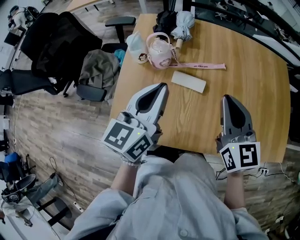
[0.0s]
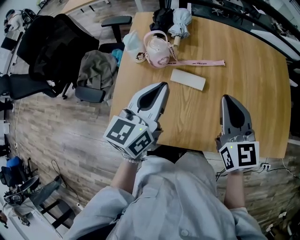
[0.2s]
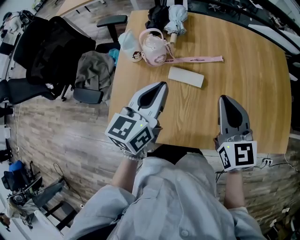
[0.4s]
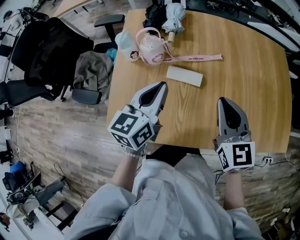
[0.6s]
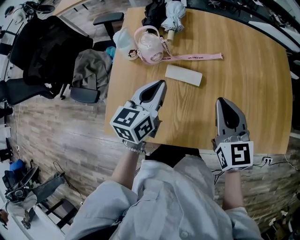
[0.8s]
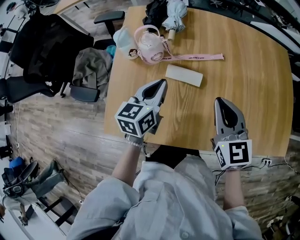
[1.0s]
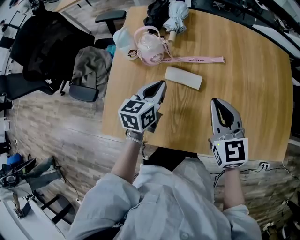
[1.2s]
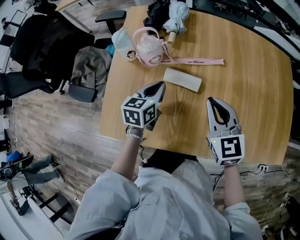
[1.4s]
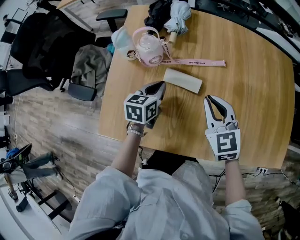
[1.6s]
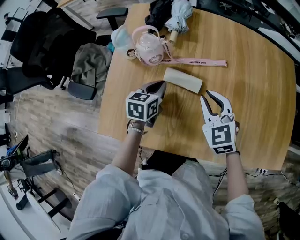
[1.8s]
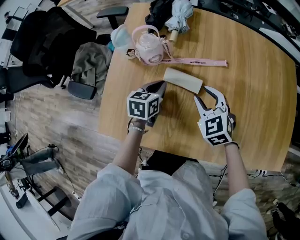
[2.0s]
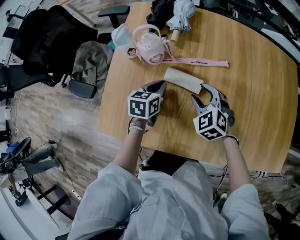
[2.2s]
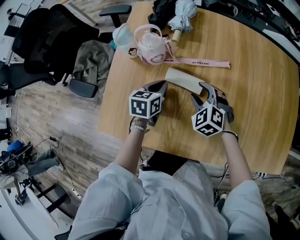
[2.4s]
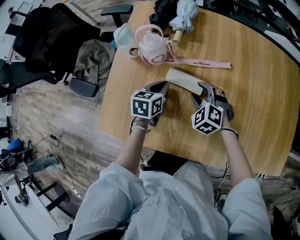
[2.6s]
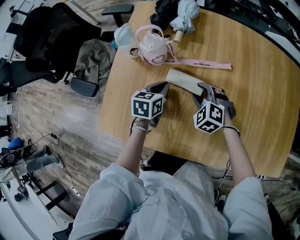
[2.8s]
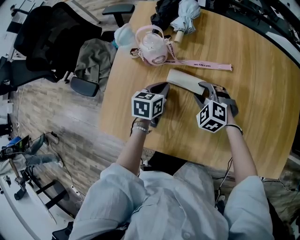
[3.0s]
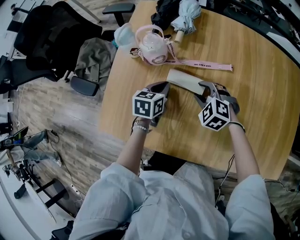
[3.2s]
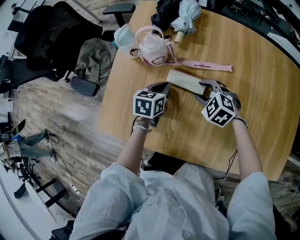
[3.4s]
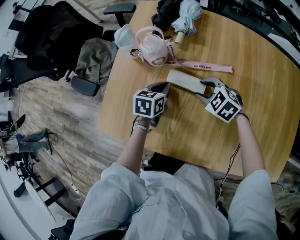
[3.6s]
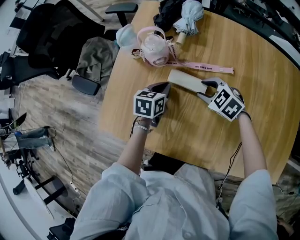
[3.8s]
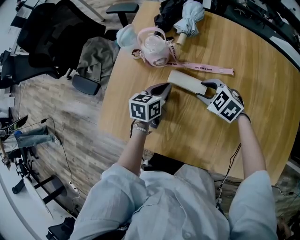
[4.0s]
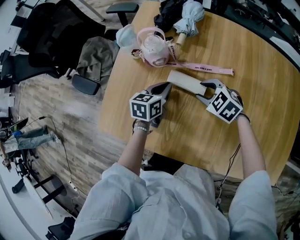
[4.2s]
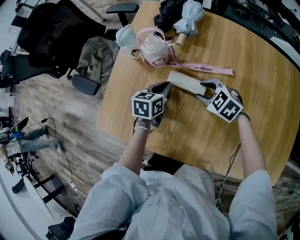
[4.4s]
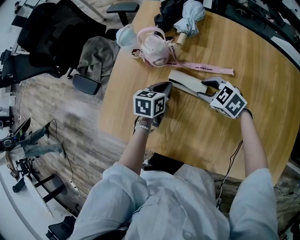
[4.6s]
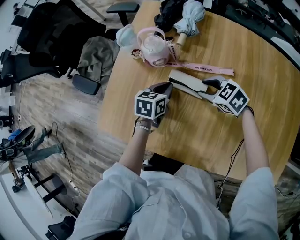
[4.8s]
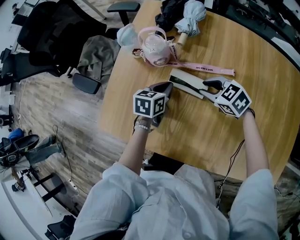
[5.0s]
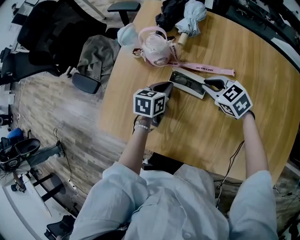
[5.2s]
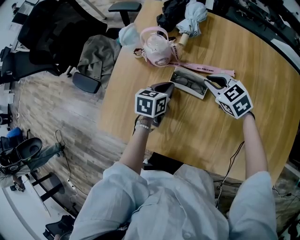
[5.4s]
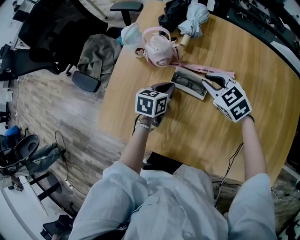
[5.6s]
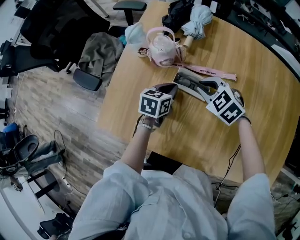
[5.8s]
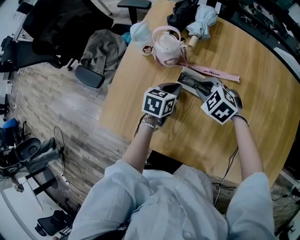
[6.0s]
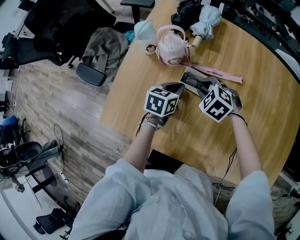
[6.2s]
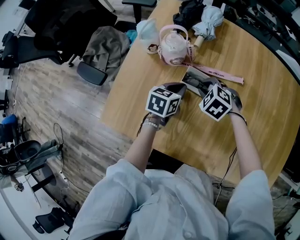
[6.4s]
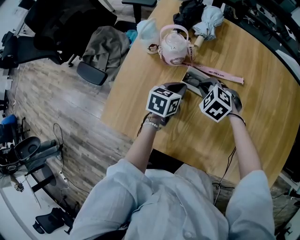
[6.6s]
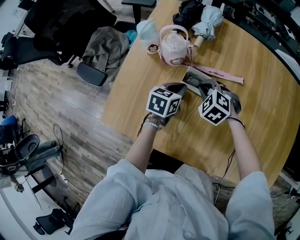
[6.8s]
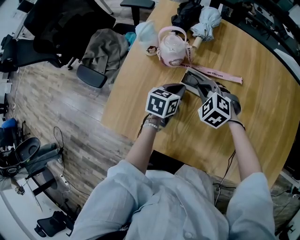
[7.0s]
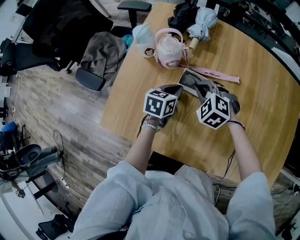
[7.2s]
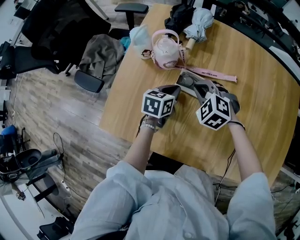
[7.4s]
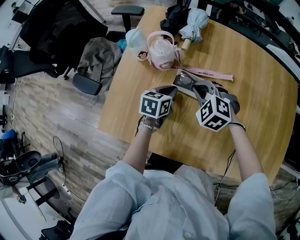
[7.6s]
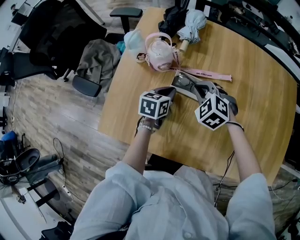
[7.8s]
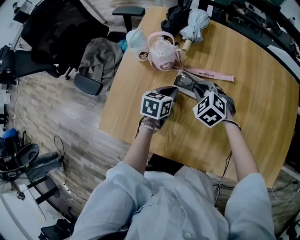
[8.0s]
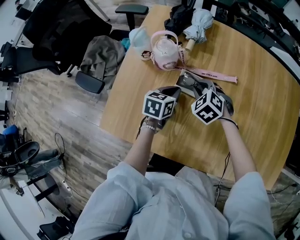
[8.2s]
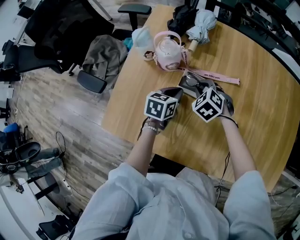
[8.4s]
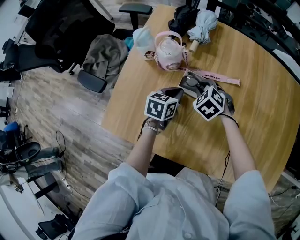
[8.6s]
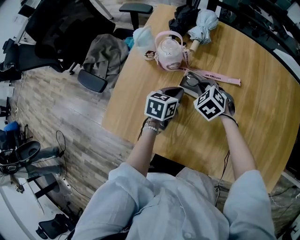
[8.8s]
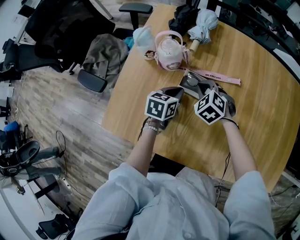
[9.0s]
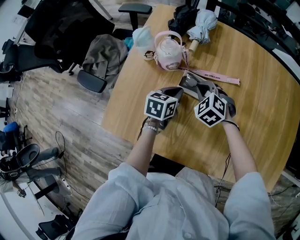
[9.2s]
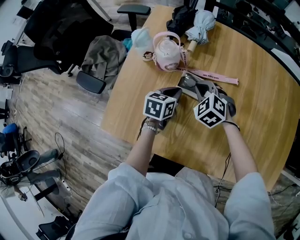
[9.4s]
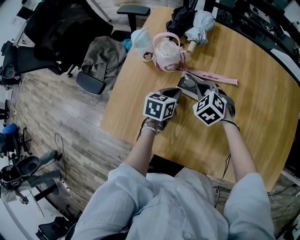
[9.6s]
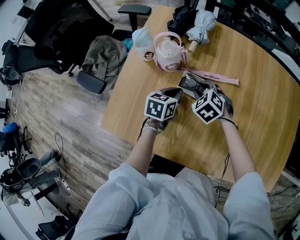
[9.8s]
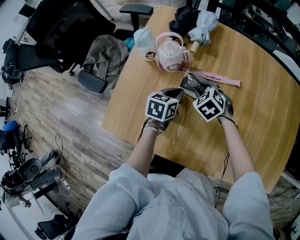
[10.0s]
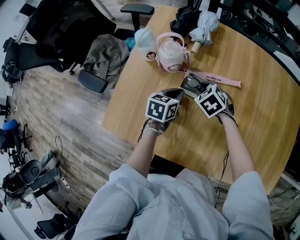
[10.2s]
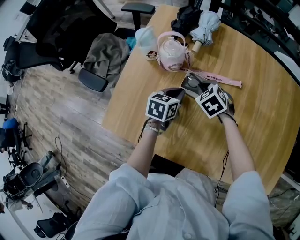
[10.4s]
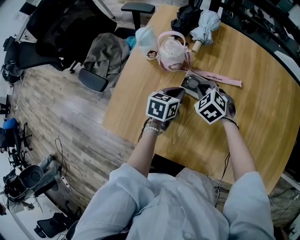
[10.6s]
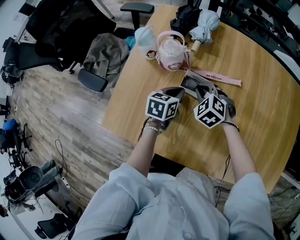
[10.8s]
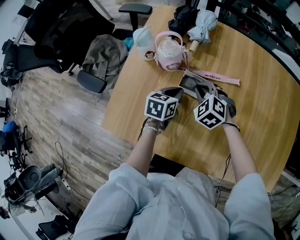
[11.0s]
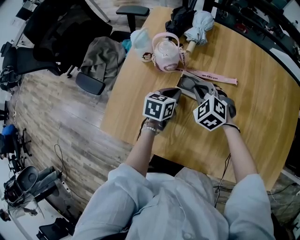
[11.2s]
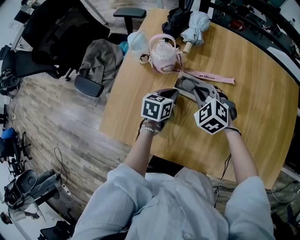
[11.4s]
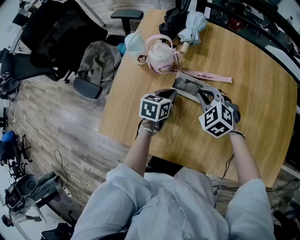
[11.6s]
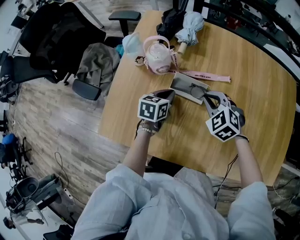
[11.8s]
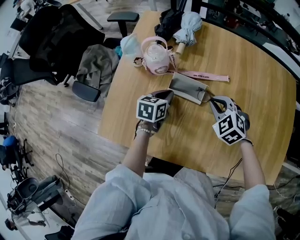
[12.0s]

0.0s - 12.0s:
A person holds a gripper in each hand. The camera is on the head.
0.0s - 1.6s: The right gripper travels downward by roughly 15 cm, and rotates some 20 degrees; the left gripper is displaced downward by some 25 cm, and changes its angle by approximately 30 degrees.
1.6s - 3.0s: The right gripper travels downward by roughly 15 cm, turns by roughly 50 degrees, and opens up.
3.0s - 4.4s: The right gripper swivels roughly 20 degrees.
4.4s - 6.0s: The right gripper moves approximately 5 cm, and closes up.
6.0s - 7.6s: The grippers move only a little.
7.6s - 9.0s: The right gripper heads downward, covering approximately 5 cm.
9.0s - 10.4s: The right gripper opens, then closes again.
10.4s - 12.0s: The right gripper moves to the right, backward and upward, approximately 15 cm.

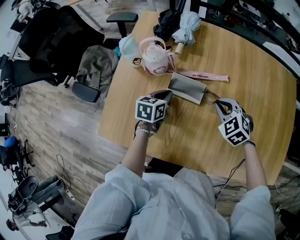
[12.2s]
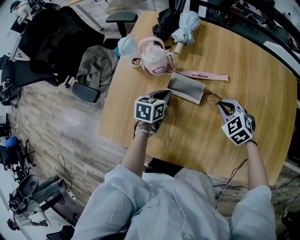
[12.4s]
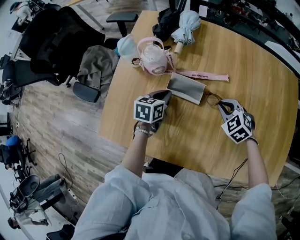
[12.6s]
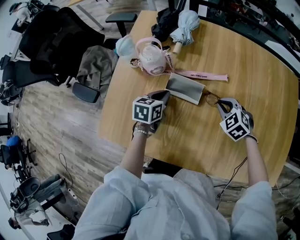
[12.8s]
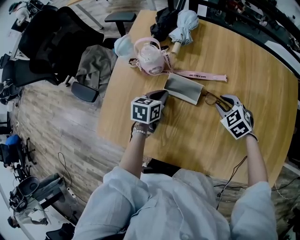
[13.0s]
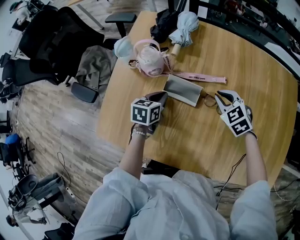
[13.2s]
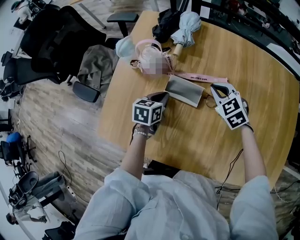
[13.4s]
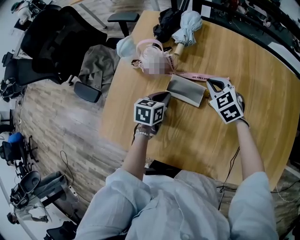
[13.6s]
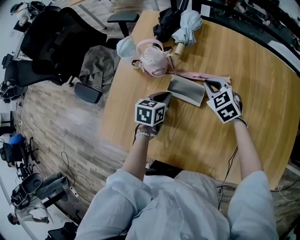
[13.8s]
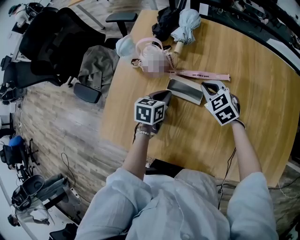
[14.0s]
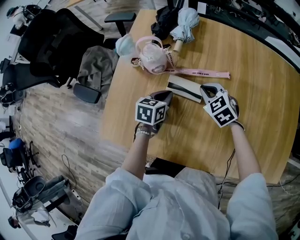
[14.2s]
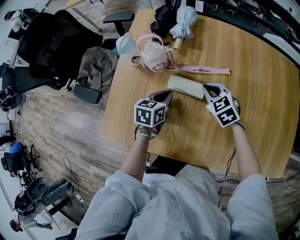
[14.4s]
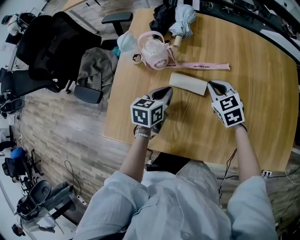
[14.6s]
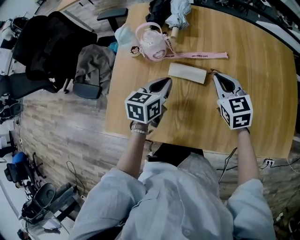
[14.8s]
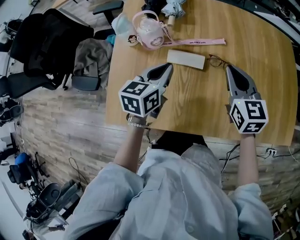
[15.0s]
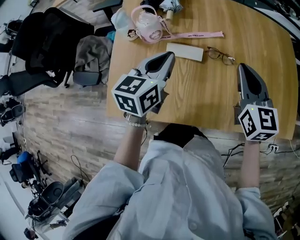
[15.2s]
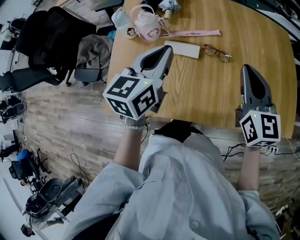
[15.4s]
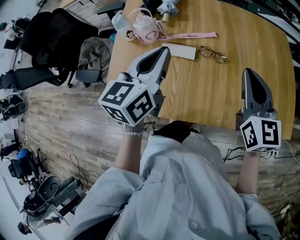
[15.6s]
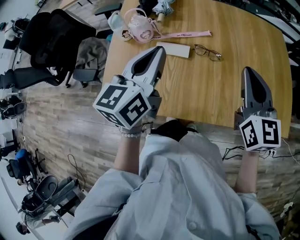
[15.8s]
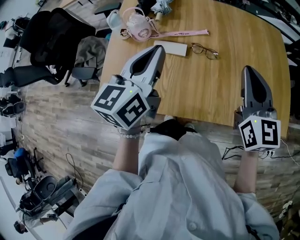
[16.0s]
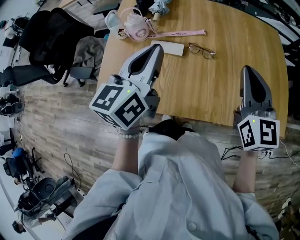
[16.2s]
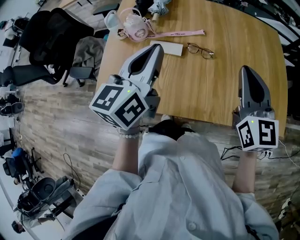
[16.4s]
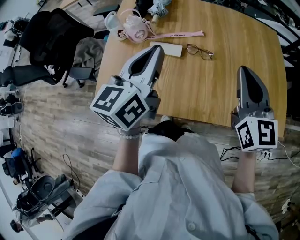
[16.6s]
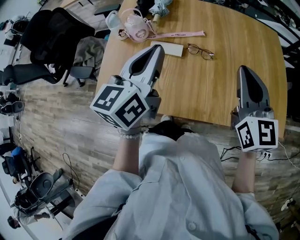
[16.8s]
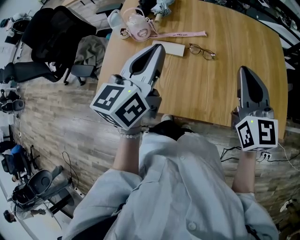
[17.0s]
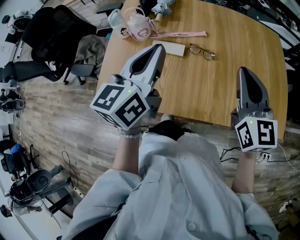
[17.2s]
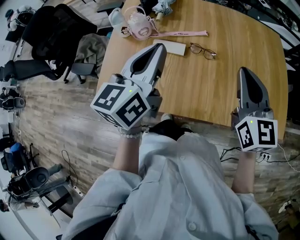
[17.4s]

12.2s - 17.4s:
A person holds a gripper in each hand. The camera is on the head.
12.2s - 14.0s: The right gripper shifts some 10 cm forward and to the left, and opens, then closes once more.
14.0s - 15.6s: The right gripper goes approximately 35 cm upward, backward and to the right, and points its fingers some 40 degrees further upward; the left gripper shifts approximately 30 cm upward, and angles its fingers upward, by some 30 degrees.
15.6s - 17.4s: The left gripper shifts by about 5 cm.

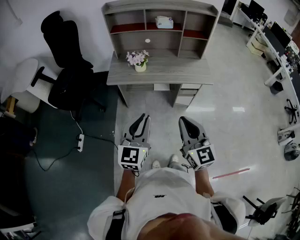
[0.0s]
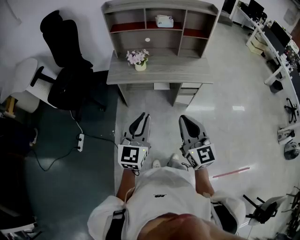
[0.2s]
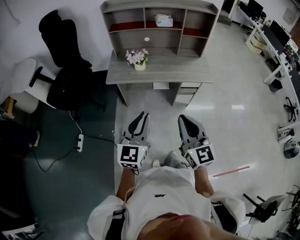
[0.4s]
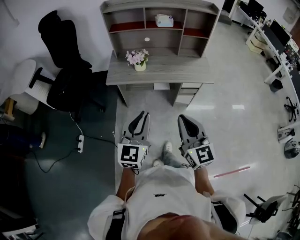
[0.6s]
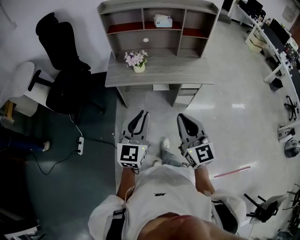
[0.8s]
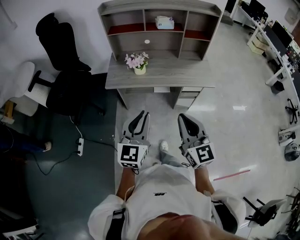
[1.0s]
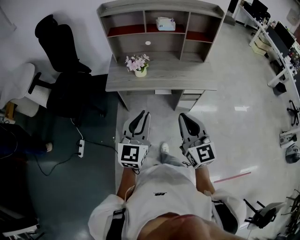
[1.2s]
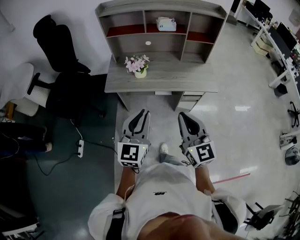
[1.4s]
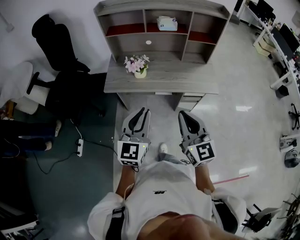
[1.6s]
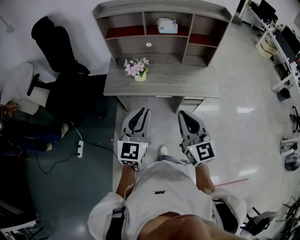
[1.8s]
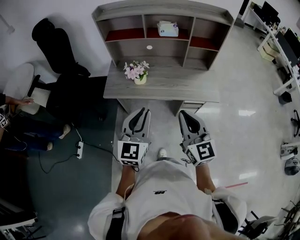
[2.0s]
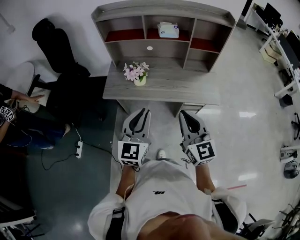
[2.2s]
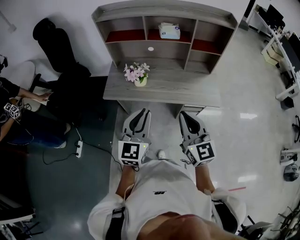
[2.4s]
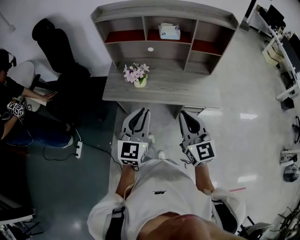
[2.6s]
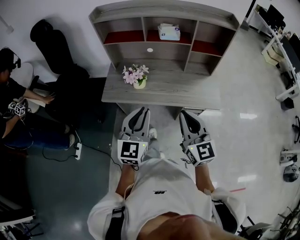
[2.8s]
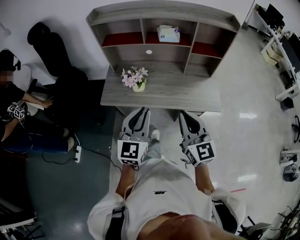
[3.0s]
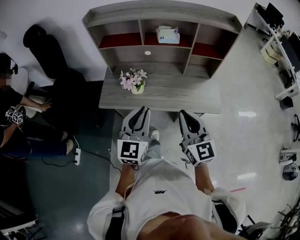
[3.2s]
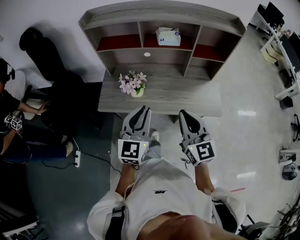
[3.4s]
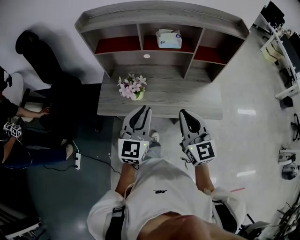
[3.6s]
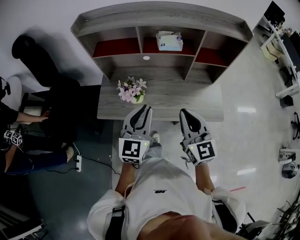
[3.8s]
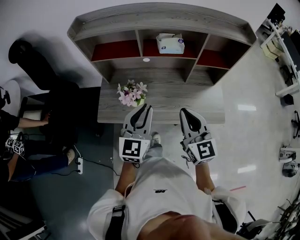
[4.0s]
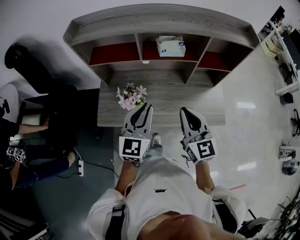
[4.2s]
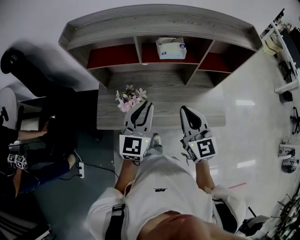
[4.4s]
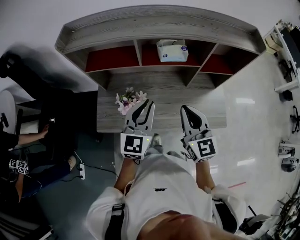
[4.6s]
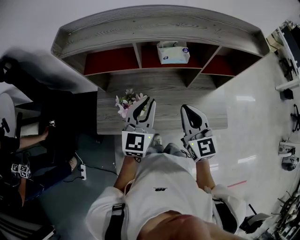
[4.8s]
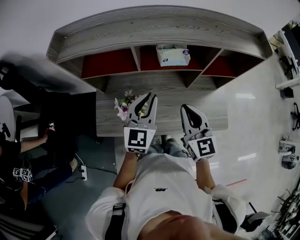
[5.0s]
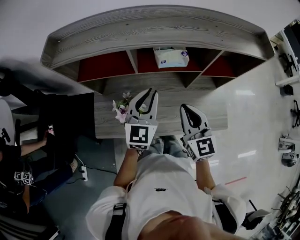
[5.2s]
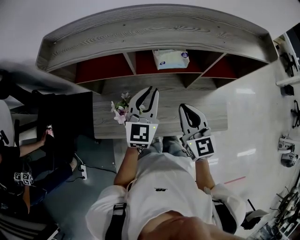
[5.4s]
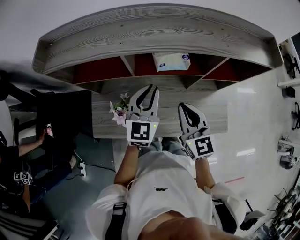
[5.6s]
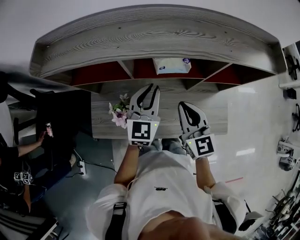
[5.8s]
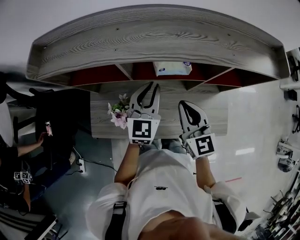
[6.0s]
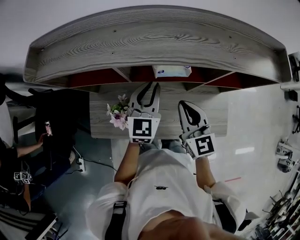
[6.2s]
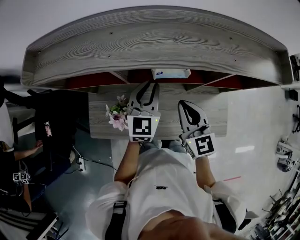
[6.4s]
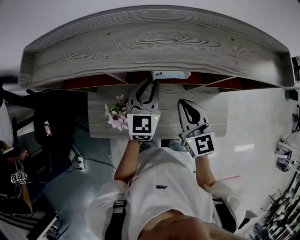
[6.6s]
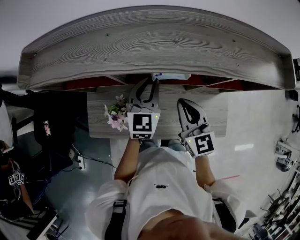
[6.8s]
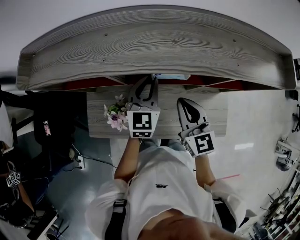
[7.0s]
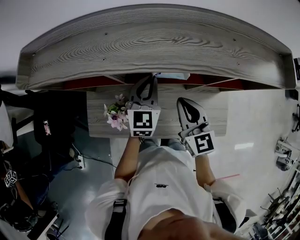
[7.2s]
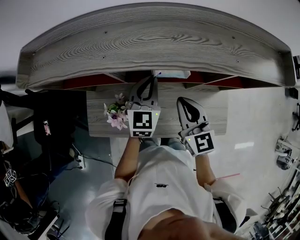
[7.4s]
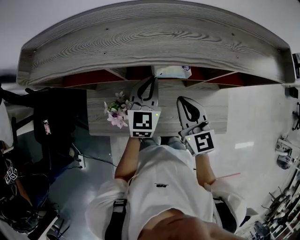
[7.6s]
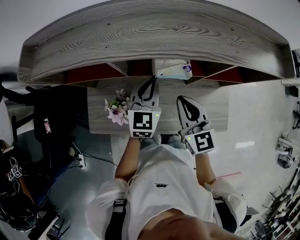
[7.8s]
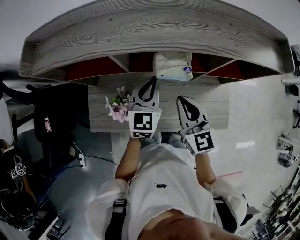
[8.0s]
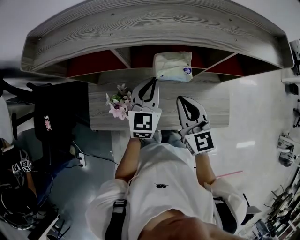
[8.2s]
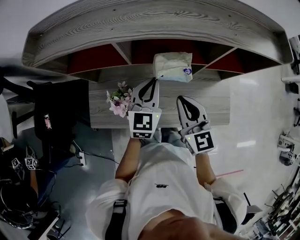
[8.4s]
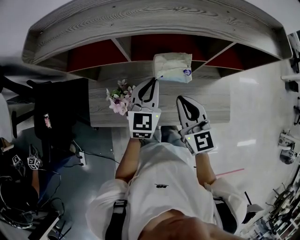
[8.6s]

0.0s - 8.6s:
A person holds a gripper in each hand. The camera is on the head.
0.0s - 1.4s: Both grippers travel together forward, roughly 15 cm.
1.4s - 2.8s: Both grippers move forward, about 15 cm.
2.8s - 4.4s: Both grippers move forward, approximately 25 cm.
4.4s - 5.8s: The two grippers go approximately 15 cm forward.
5.8s - 7.2s: Both grippers travel together forward, some 5 cm.
7.2s - 8.6s: The two grippers go approximately 10 cm backward.
